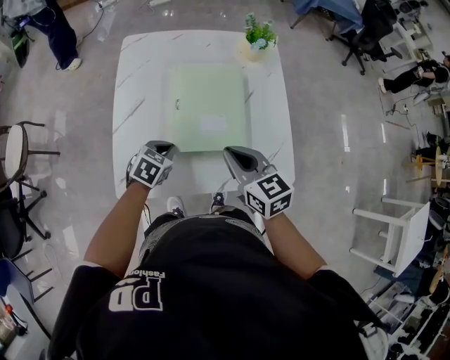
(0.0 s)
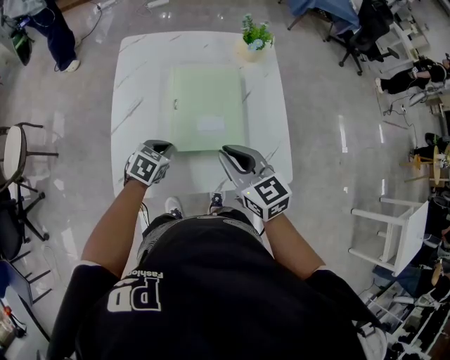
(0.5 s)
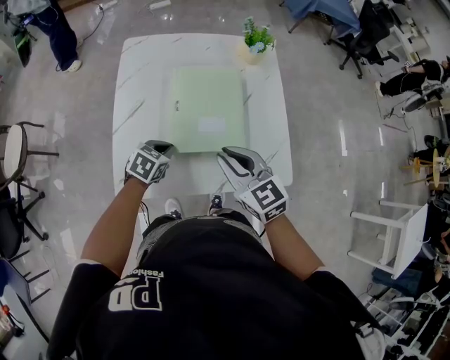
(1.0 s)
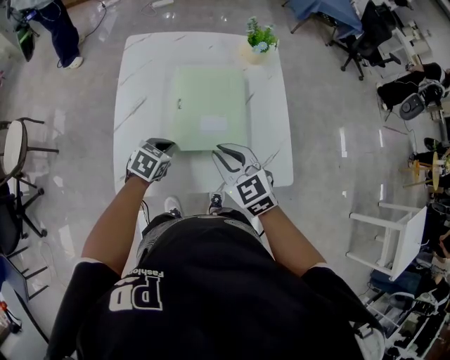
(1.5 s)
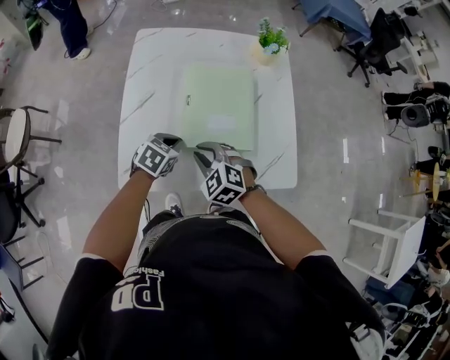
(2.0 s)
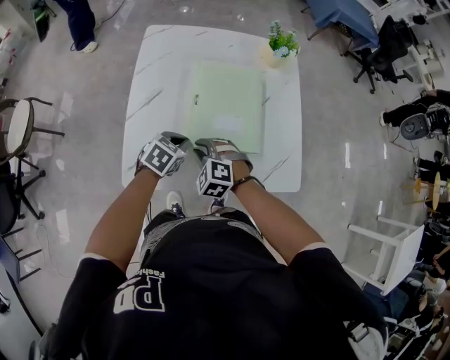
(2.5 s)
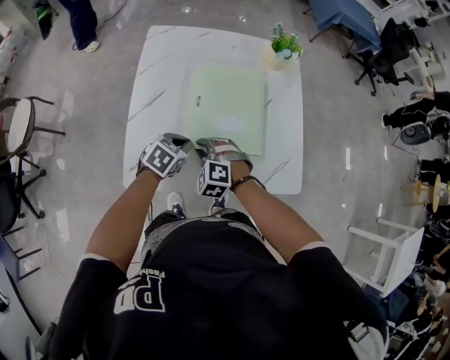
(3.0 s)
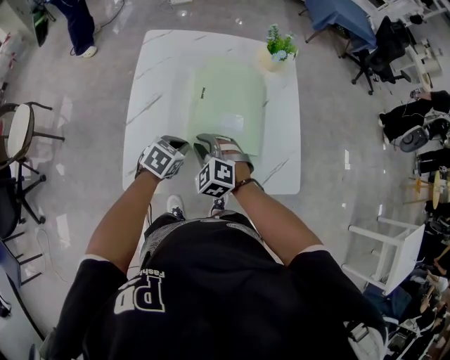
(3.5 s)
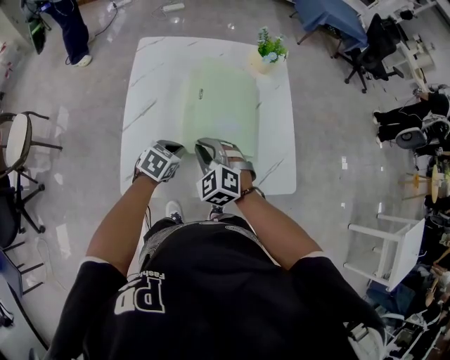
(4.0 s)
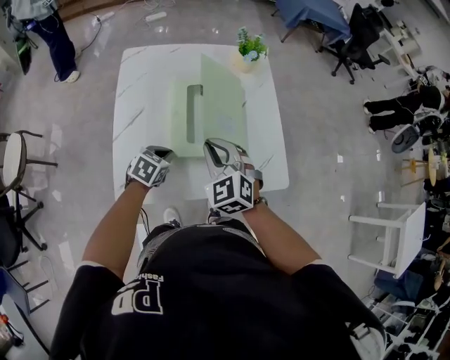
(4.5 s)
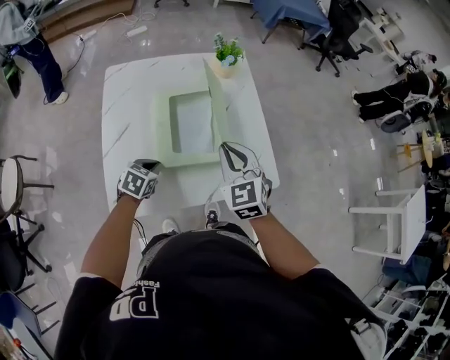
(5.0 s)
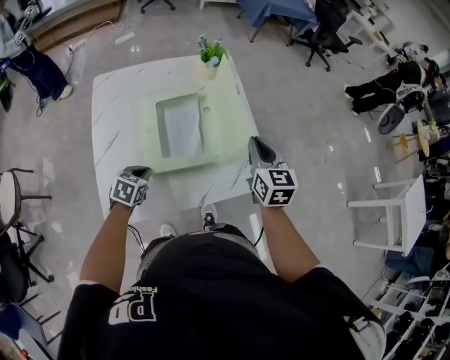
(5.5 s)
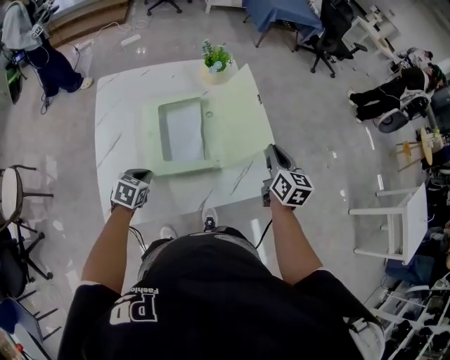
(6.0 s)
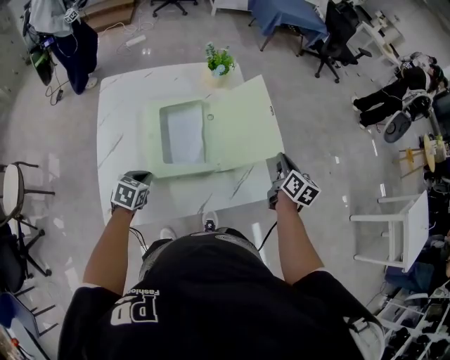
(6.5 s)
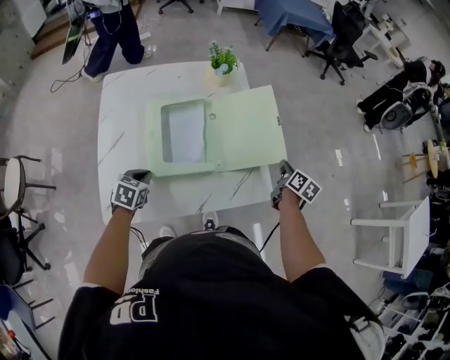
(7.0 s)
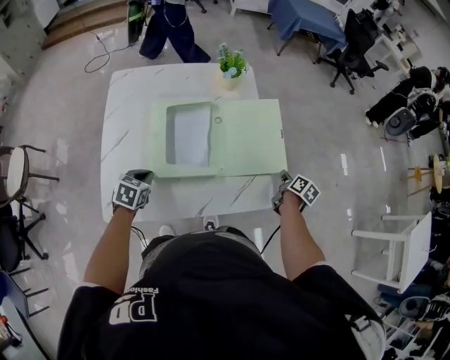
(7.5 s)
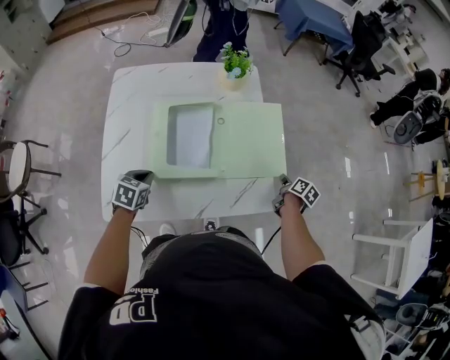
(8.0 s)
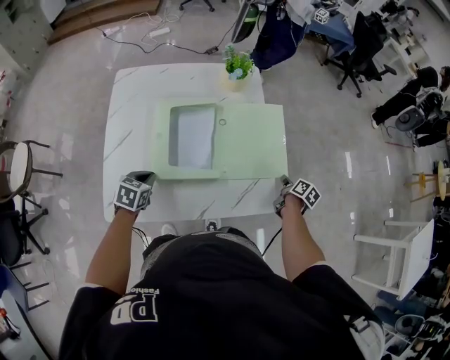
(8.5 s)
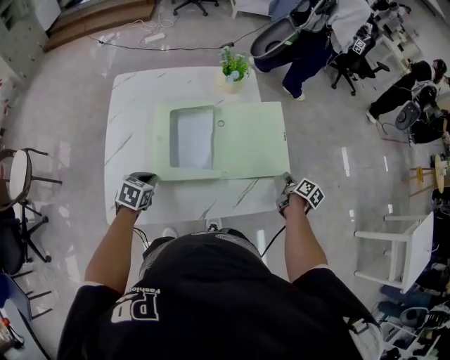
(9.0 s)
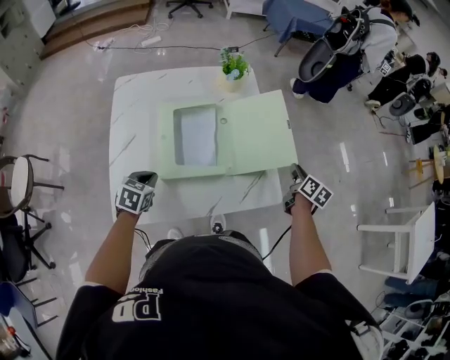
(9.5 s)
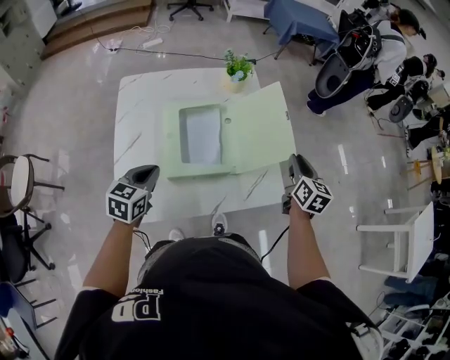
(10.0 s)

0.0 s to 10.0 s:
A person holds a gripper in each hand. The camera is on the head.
0.0 to 2.0 s: The right gripper moves downward and to the left, roughly 15 cm, and twists approximately 40 degrees counterclockwise, seen from behind.
2.0 to 4.0 s: The right gripper ends up about 5 cm from where it was.
4.0 to 6.0 s: The right gripper travels to the right by about 35 cm, and rolls clockwise, seen from behind, by about 70 degrees.
6.0 to 8.0 s: The right gripper heads downward and to the right, covering roughly 25 cm, and changes its angle by roughly 40 degrees.
8.0 to 10.0 s: The right gripper heads upward and to the left, covering some 25 cm, and swivels some 40 degrees; the left gripper moves upward, some 10 cm, and rotates about 20 degrees.

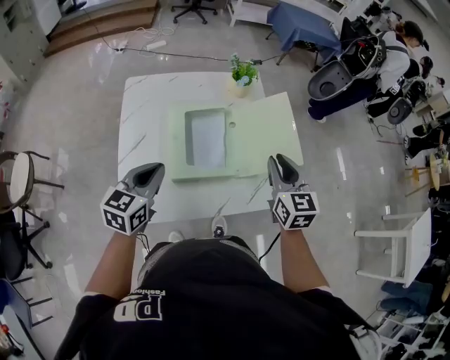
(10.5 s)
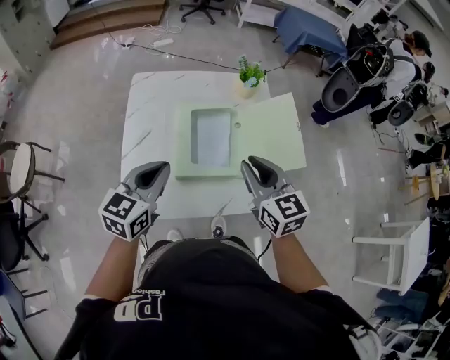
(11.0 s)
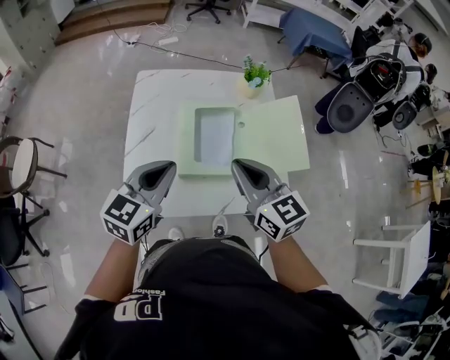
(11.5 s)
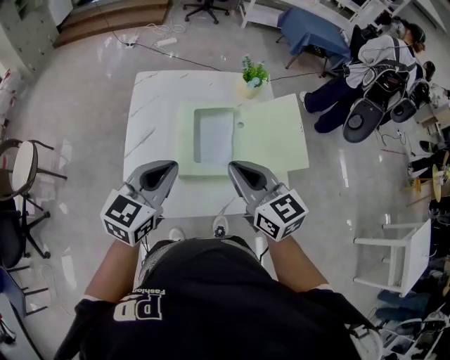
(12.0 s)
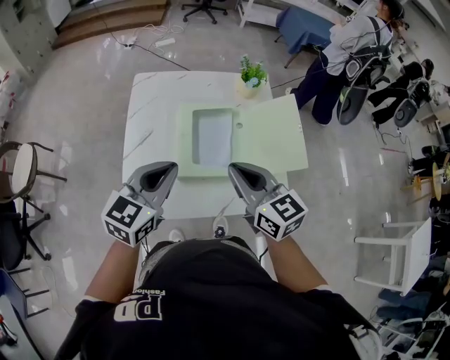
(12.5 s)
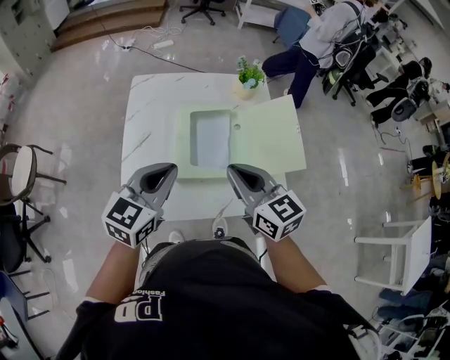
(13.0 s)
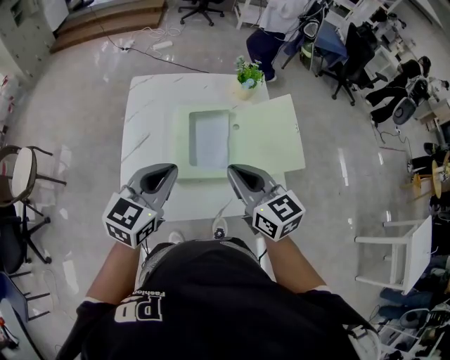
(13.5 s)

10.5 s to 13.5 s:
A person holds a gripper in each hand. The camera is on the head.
10.5 to 12.0 s: The right gripper travels to the left by roughly 15 cm, and turns by some 30 degrees; the left gripper moves upward, some 5 cm.
12.0 to 13.5 s: The grippers stay close to where they were, moving slightly.

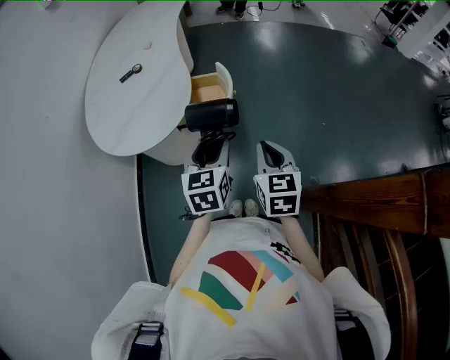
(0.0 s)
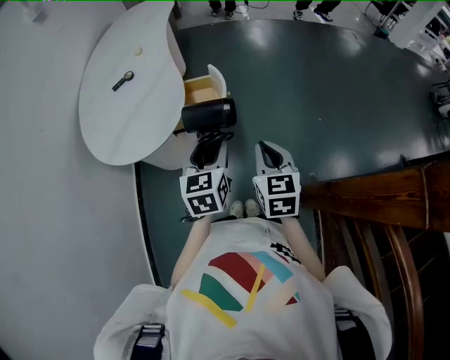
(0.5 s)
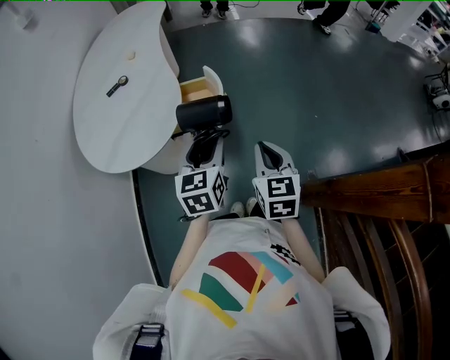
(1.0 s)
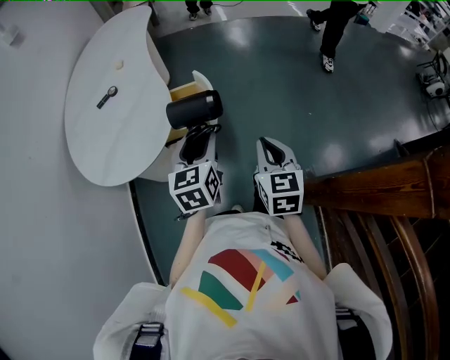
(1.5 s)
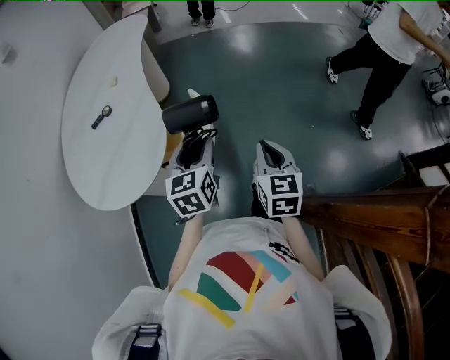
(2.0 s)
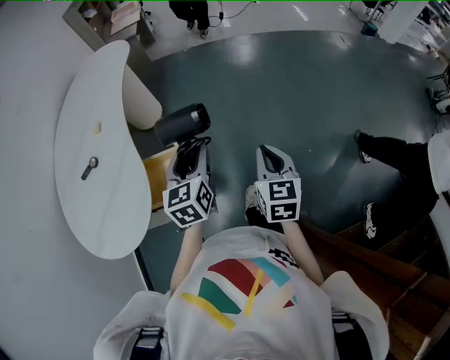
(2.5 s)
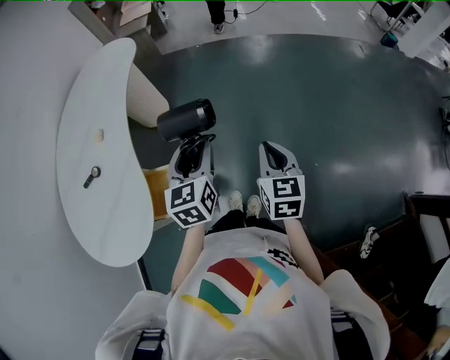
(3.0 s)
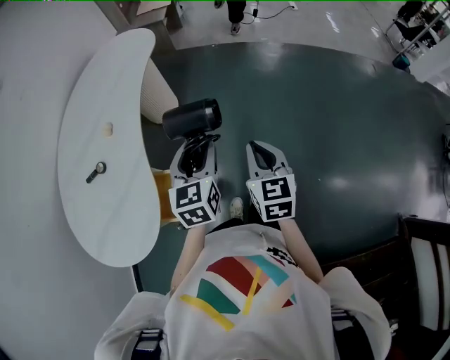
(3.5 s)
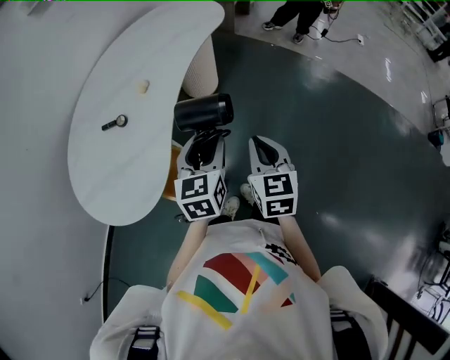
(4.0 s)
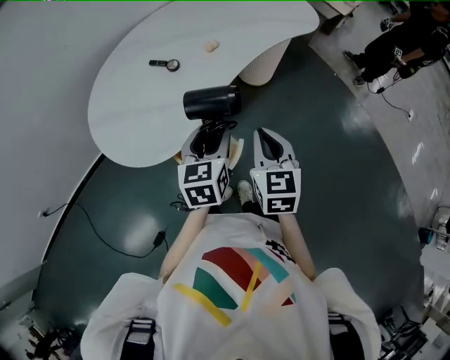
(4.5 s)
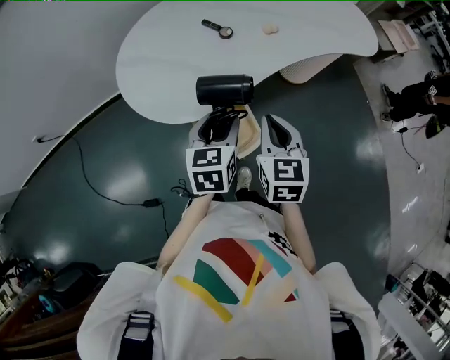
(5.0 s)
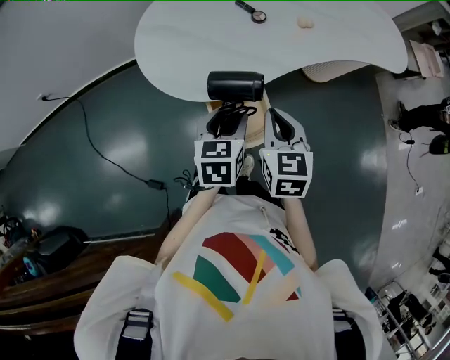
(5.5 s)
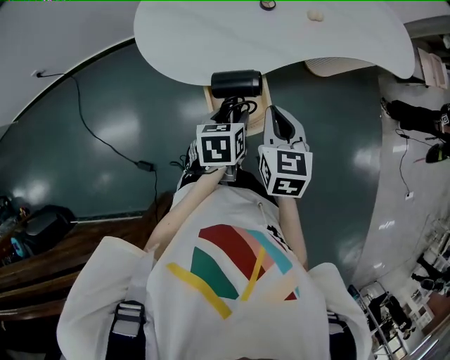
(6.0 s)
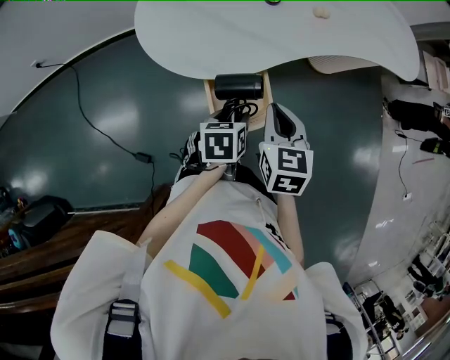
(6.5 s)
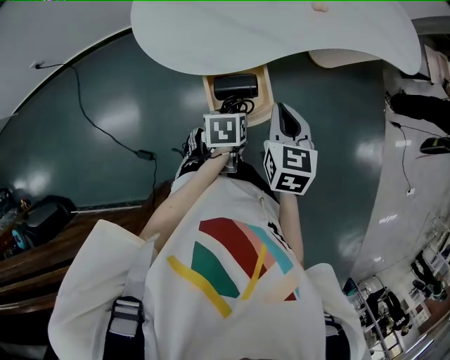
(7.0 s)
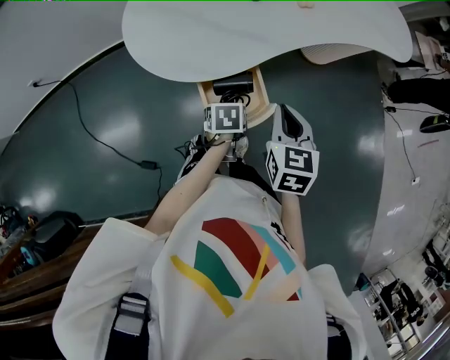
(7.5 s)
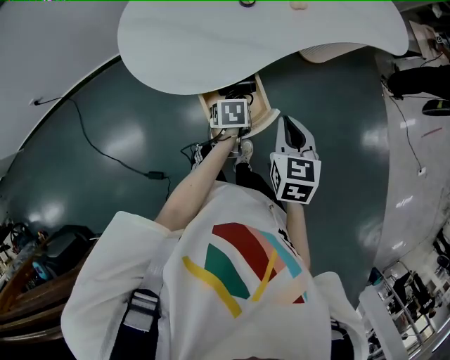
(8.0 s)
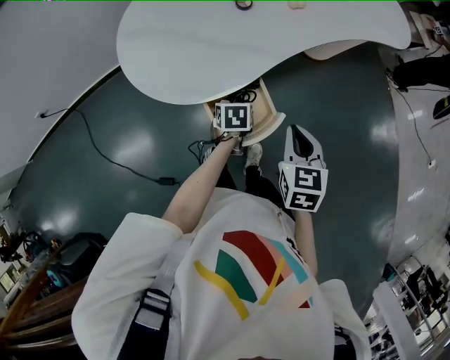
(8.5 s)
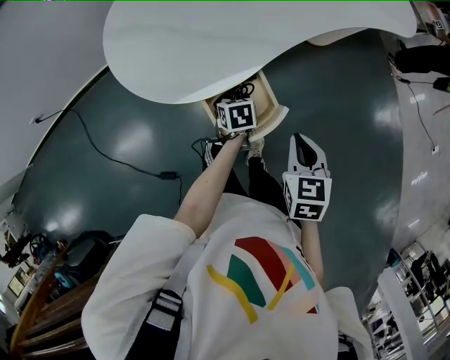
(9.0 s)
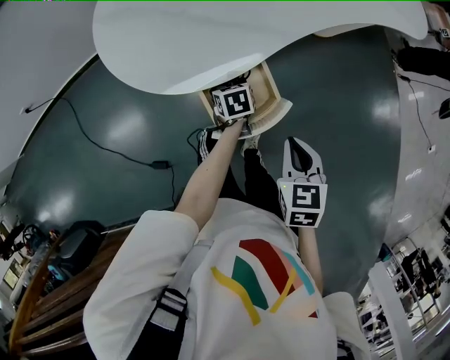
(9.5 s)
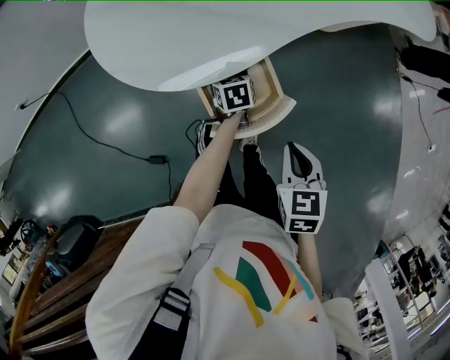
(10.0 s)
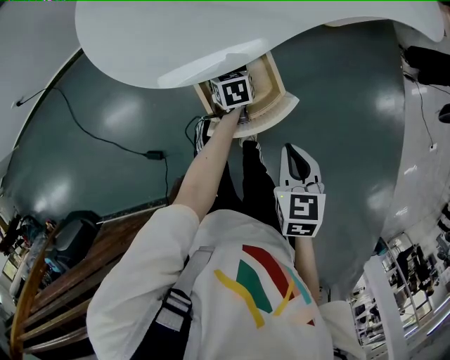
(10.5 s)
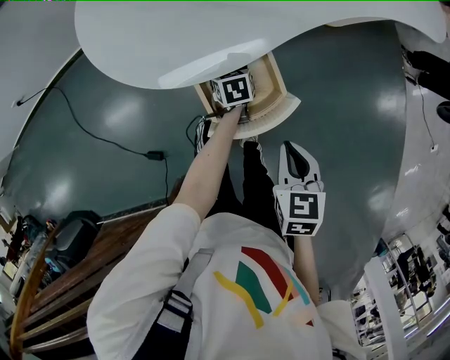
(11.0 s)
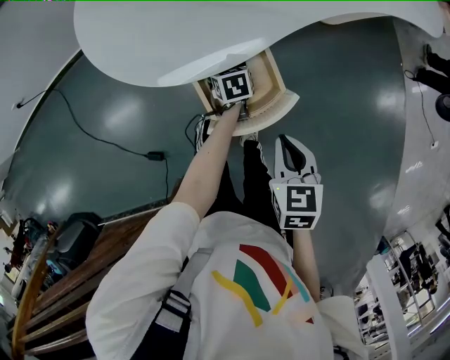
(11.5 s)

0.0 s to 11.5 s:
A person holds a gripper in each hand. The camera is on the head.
0.0 to 2.0 s: The left gripper moves forward, about 15 cm. Meanwhile the right gripper heads forward and to the right, covering about 15 cm.
2.0 to 4.0 s: The right gripper shifts by roughly 40 cm, and swivels approximately 40 degrees; the left gripper changes place by roughly 35 cm, and turns by approximately 30 degrees.
4.0 to 6.0 s: The left gripper changes place by approximately 25 cm, and turns by roughly 60 degrees. Meanwhile the right gripper changes place by some 20 cm, and turns by approximately 50 degrees.
6.0 to 7.5 s: The left gripper goes about 10 cm downward.
7.5 to 9.5 s: The left gripper travels downward and forward by some 15 cm. The right gripper is displaced downward and backward by roughly 10 cm.
9.5 to 11.5 s: The left gripper heads downward, covering some 5 cm.

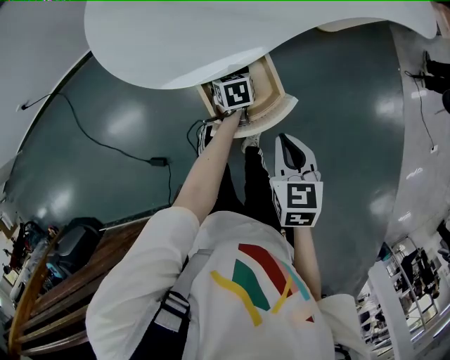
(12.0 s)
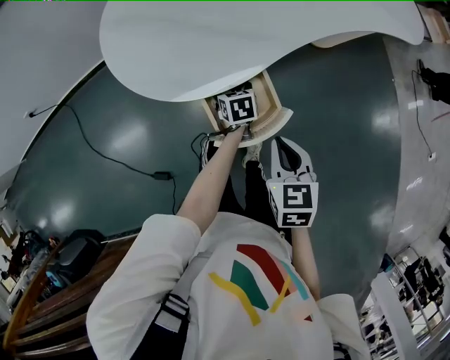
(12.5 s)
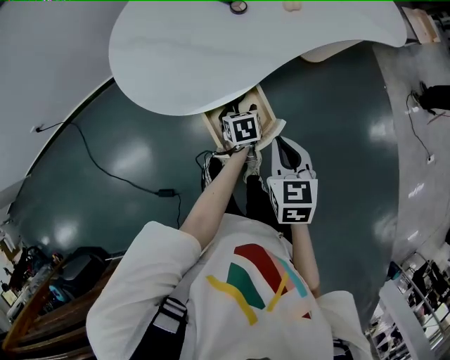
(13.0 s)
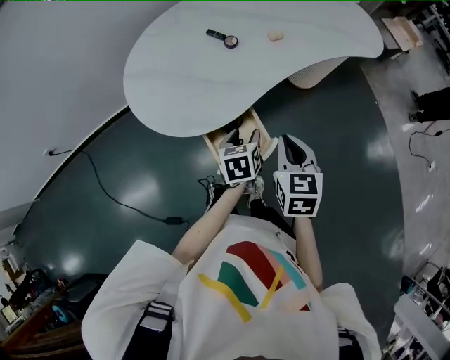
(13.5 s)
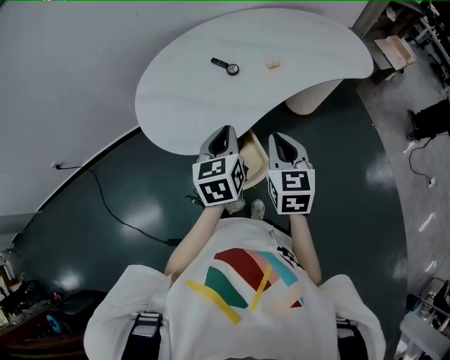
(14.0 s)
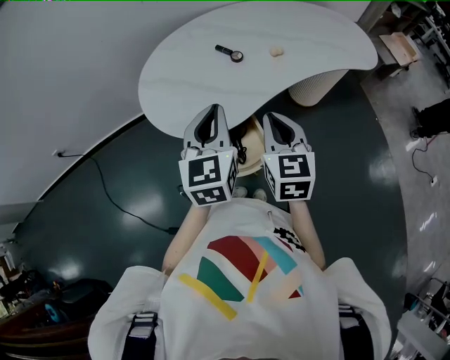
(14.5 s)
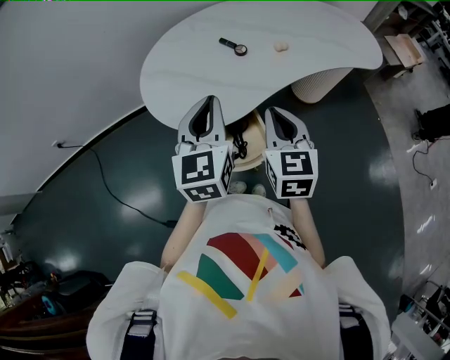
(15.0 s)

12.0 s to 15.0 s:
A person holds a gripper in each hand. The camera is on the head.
12.0 to 13.5 s: The right gripper moves upward and forward, about 15 cm. The left gripper travels upward by some 20 cm.
13.5 to 15.0 s: The right gripper shifts roughly 10 cm upward and to the left; the left gripper travels upward by some 25 cm, angles its fingers upward, by about 30 degrees, and closes its fingers.
